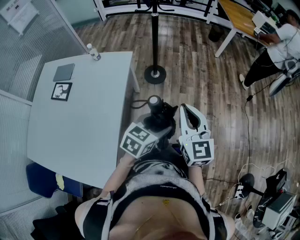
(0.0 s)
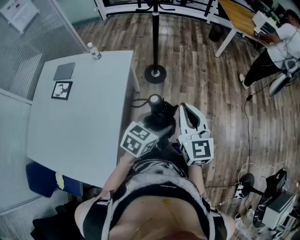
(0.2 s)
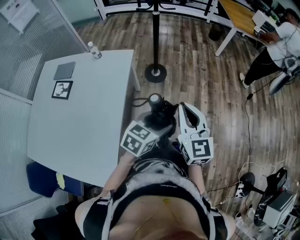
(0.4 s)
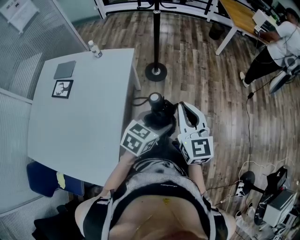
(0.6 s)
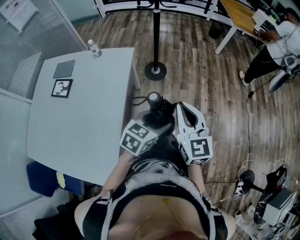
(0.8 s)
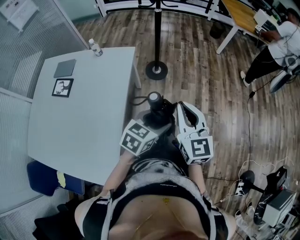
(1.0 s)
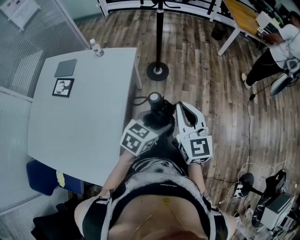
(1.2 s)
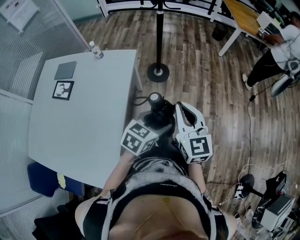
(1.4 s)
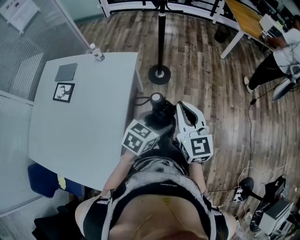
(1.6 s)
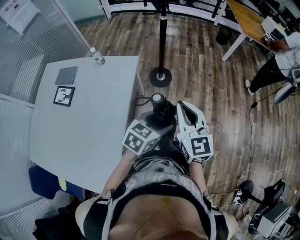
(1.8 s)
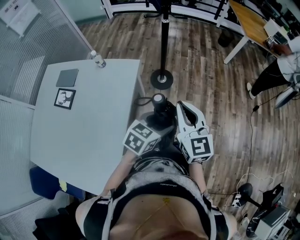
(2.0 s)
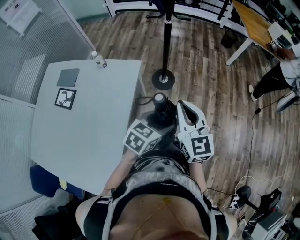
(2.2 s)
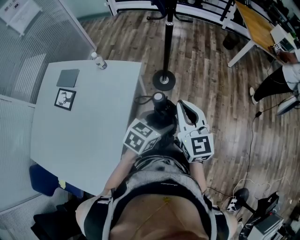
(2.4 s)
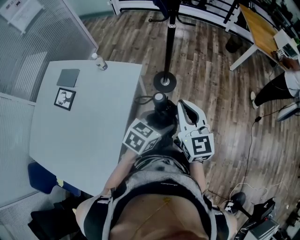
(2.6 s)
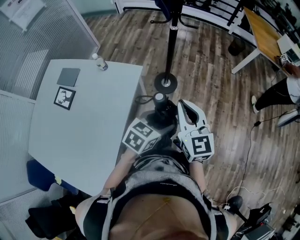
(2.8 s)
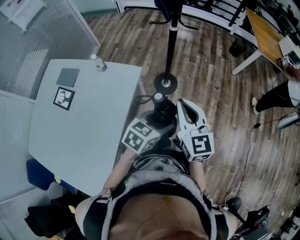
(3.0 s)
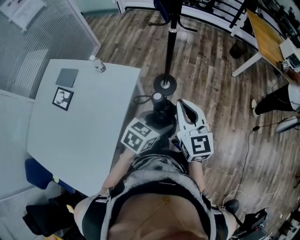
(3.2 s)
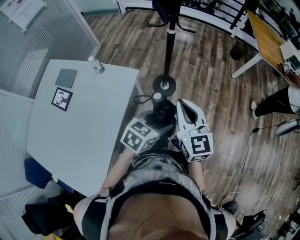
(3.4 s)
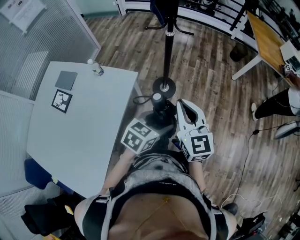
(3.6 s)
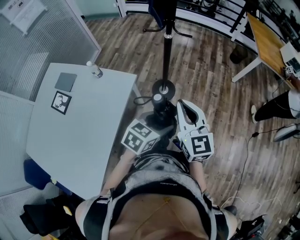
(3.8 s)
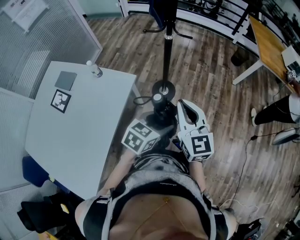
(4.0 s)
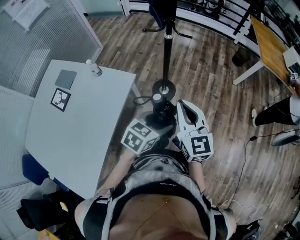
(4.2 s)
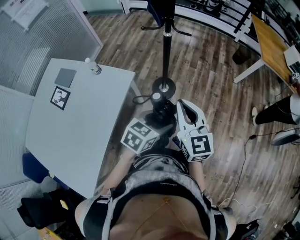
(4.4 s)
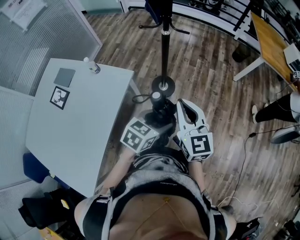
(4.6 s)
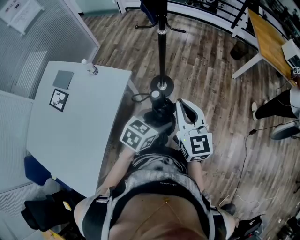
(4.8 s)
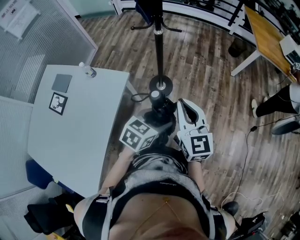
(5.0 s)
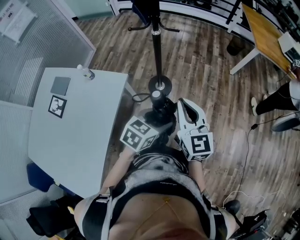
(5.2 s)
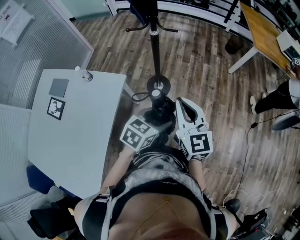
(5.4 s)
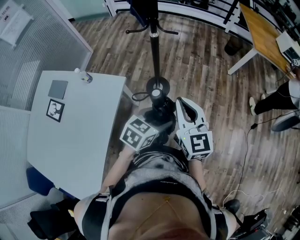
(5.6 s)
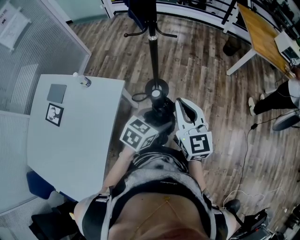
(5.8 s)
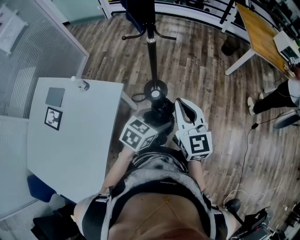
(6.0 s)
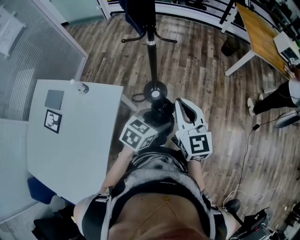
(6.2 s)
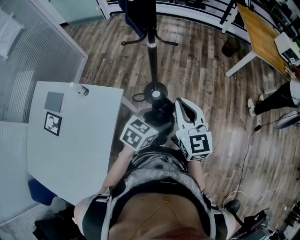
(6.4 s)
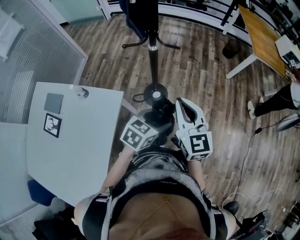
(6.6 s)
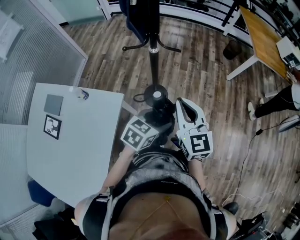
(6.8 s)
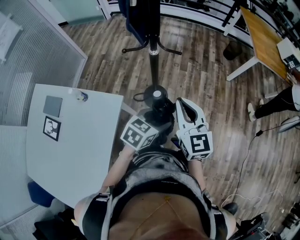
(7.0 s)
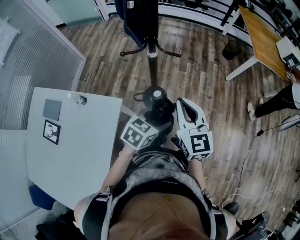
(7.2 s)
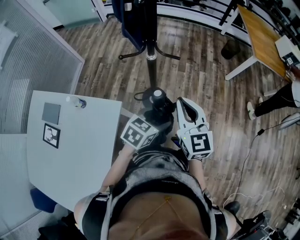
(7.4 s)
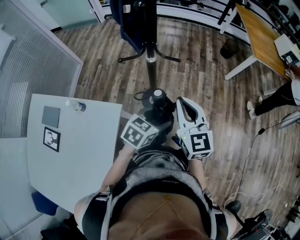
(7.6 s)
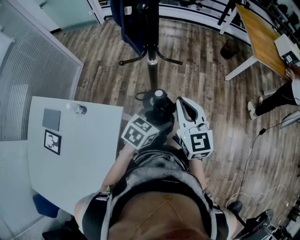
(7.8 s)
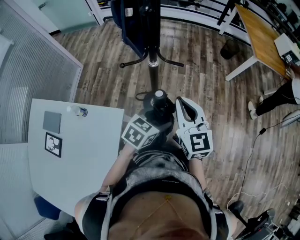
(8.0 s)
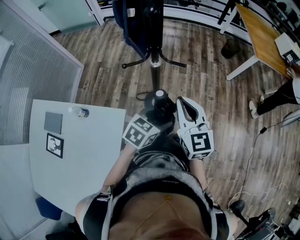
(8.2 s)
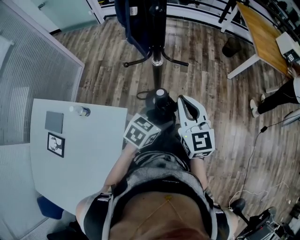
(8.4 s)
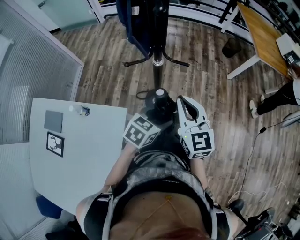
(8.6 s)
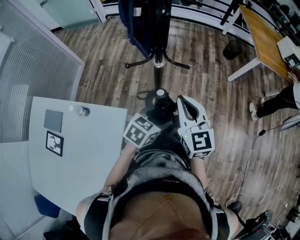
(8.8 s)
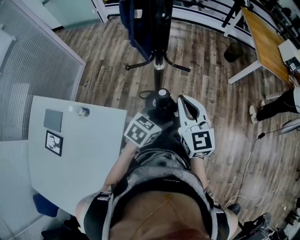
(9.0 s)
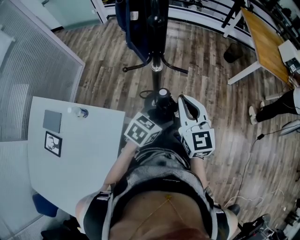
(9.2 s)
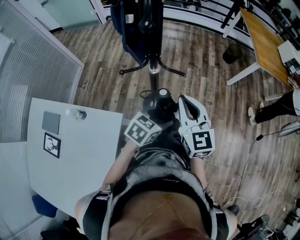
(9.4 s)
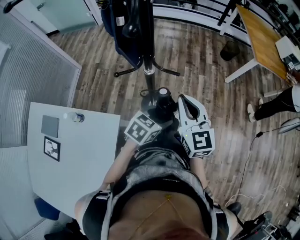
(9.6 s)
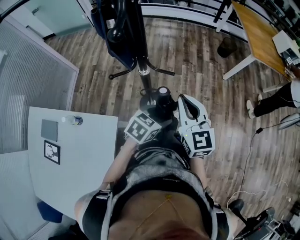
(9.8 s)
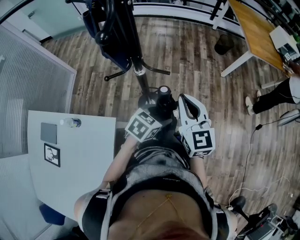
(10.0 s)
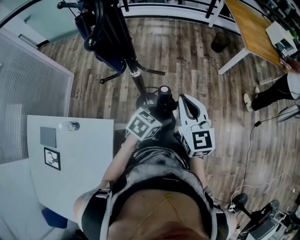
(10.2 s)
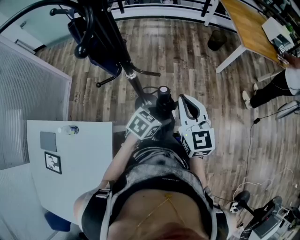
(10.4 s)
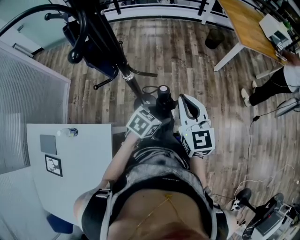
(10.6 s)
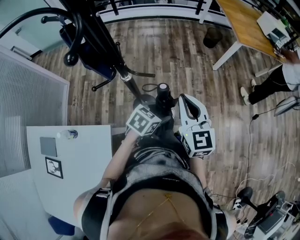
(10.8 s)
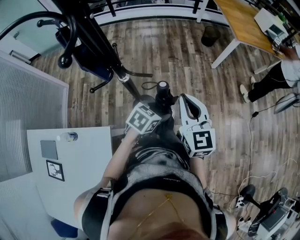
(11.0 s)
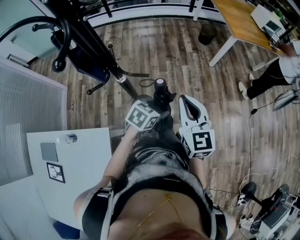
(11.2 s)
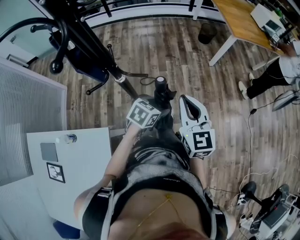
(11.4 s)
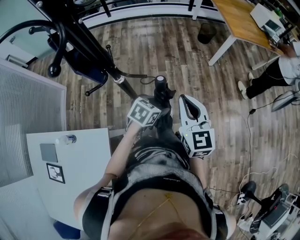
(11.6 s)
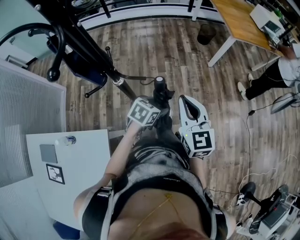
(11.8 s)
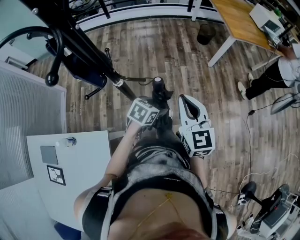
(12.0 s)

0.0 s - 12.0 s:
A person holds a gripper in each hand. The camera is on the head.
0.0 s - 1.6 s: The left gripper changes place by approximately 5 cm. Meanwhile the right gripper goes roughly 5 cm to the left.
1.6 s - 3.0 s: The two grippers go approximately 20 cm forward.
3.0 s - 4.4 s: The two grippers go approximately 10 cm forward and to the right.
4.4 s - 6.0 s: Both grippers move forward, about 5 cm.
6.0 s - 7.6 s: The grippers both shift forward and to the left by roughly 15 cm.
7.6 s - 9.0 s: The right gripper shifts by roughly 5 cm. The left gripper shifts by some 5 cm.
9.0 s - 10.4 s: The grippers both shift to the right and forward by approximately 10 cm.
10.4 s - 12.0 s: The left gripper shifts roughly 5 cm forward. The right gripper moves roughly 5 cm.

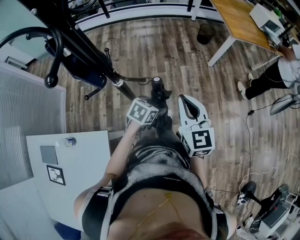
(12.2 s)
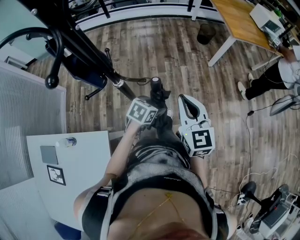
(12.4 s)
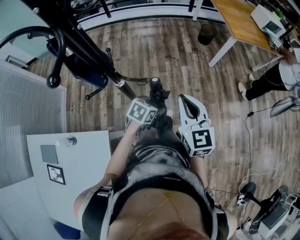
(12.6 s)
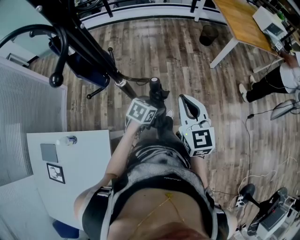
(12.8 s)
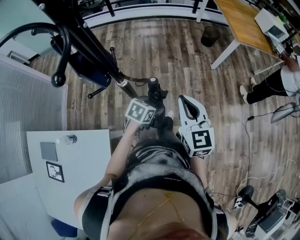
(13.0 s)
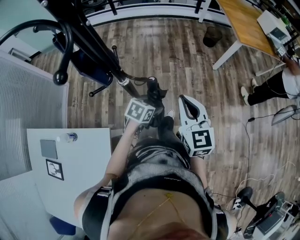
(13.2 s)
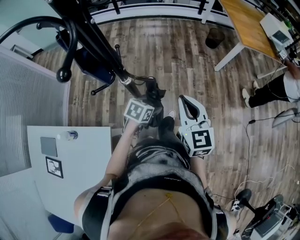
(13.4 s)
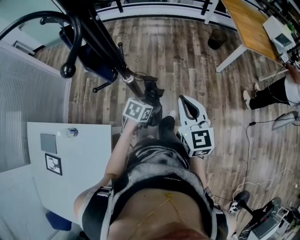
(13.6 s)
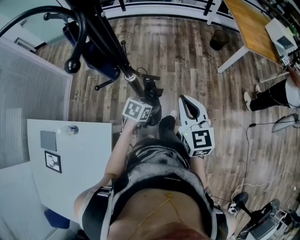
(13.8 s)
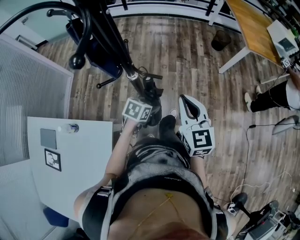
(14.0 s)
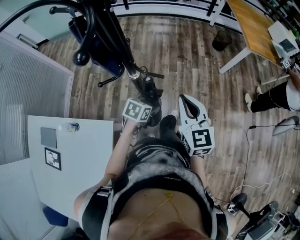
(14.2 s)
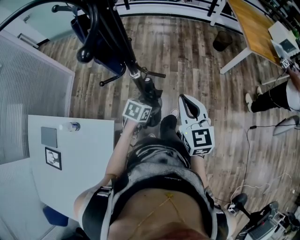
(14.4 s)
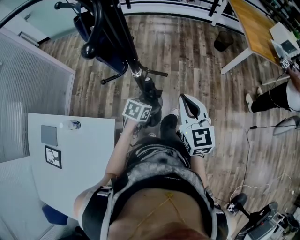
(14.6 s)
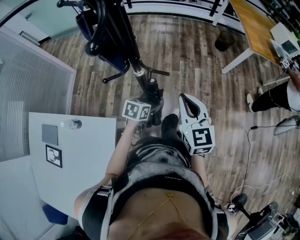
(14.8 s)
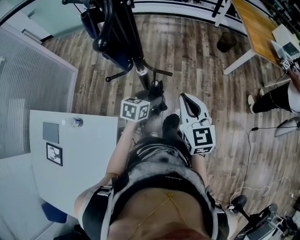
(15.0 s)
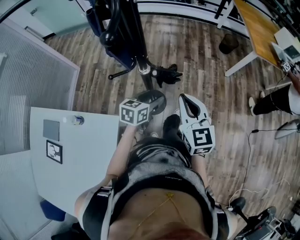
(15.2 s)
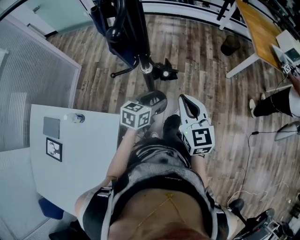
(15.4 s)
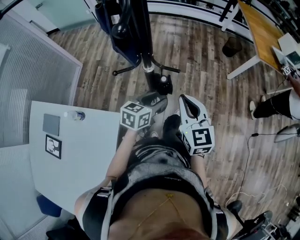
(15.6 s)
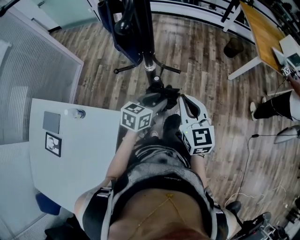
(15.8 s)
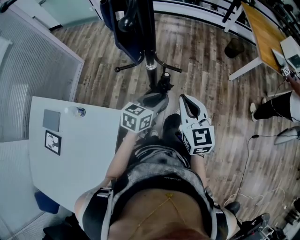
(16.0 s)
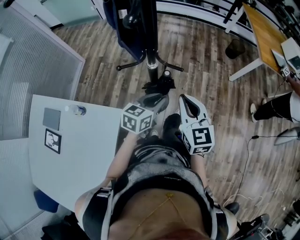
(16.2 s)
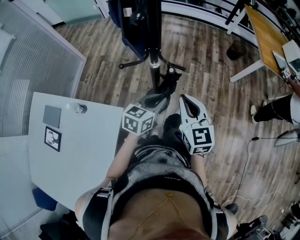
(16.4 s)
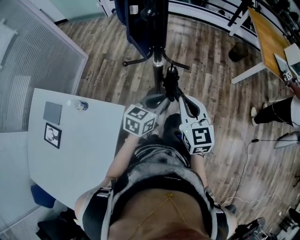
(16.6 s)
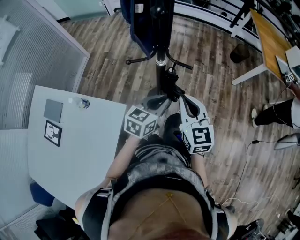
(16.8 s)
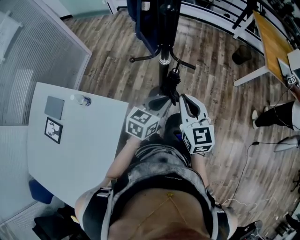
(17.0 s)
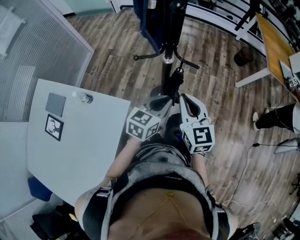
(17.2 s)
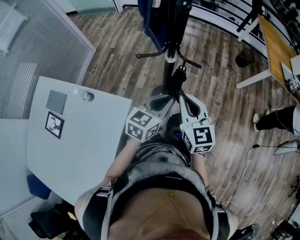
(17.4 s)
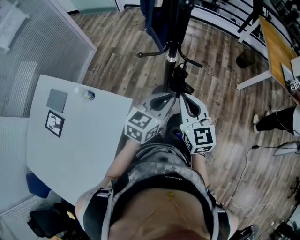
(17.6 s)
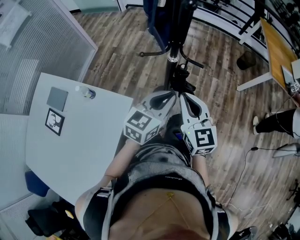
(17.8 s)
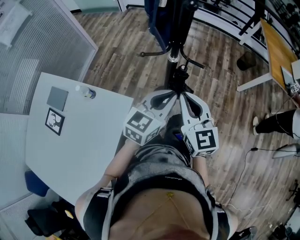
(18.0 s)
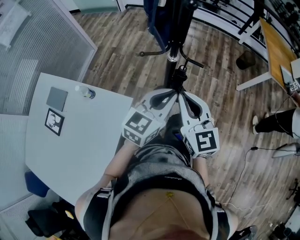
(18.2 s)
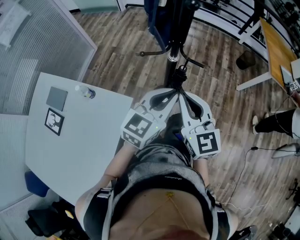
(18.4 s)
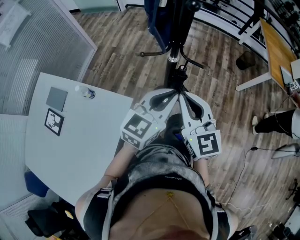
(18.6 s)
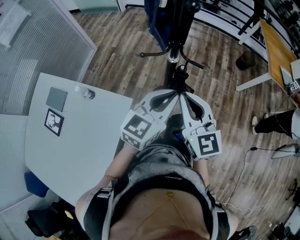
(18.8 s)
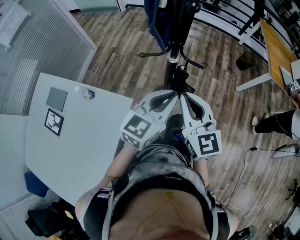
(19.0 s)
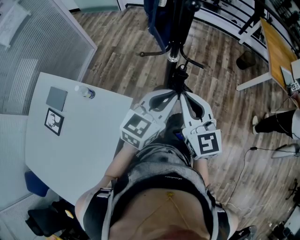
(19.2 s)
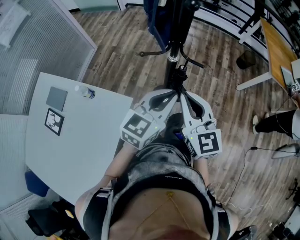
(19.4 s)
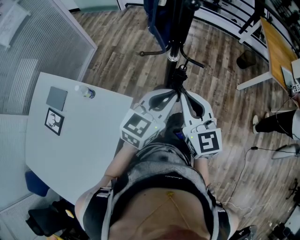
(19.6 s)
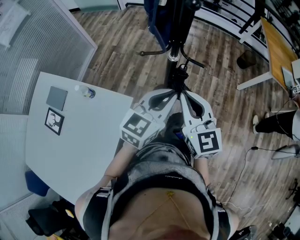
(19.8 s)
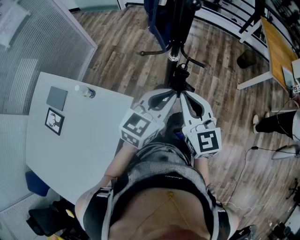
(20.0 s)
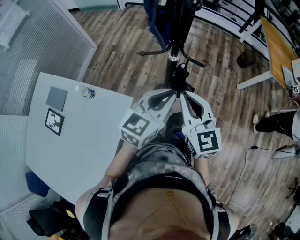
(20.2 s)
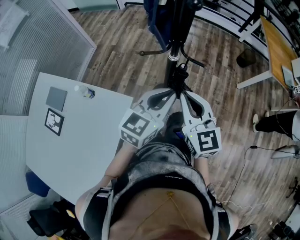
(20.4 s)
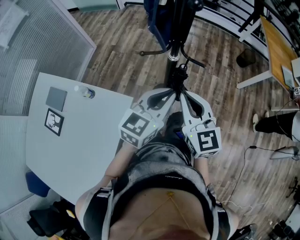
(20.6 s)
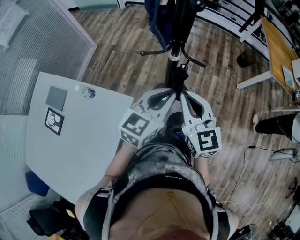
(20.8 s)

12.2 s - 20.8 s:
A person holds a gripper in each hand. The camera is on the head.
12.2 s - 13.6 s: The left gripper moves to the left, some 5 cm.
13.6 s - 15.0 s: The left gripper goes about 5 cm to the left.
15.0 s - 16.6 s: The left gripper travels upward and backward by roughly 10 cm, and closes; the right gripper ends up about 5 cm from where it was.
16.6 s - 18.0 s: The right gripper moves to the left, about 5 cm. Meanwhile the left gripper goes about 10 cm upward.
18.0 s - 19.4 s: The grippers move only a little.
19.4 s - 20.8 s: Neither gripper changes place.

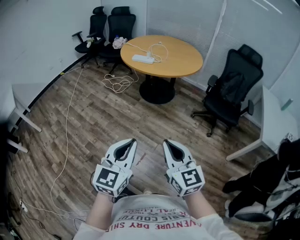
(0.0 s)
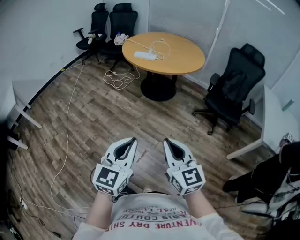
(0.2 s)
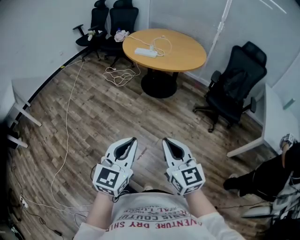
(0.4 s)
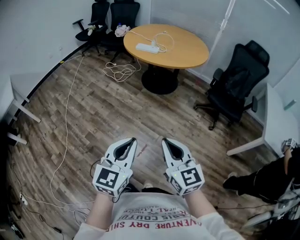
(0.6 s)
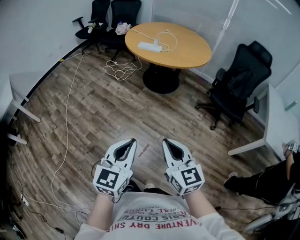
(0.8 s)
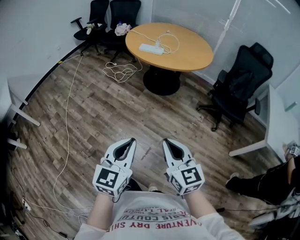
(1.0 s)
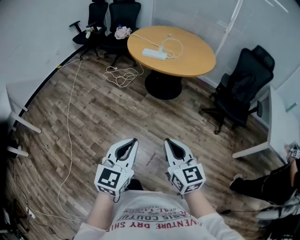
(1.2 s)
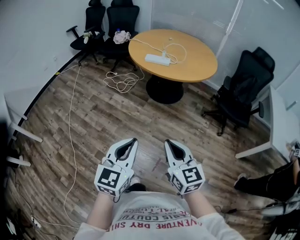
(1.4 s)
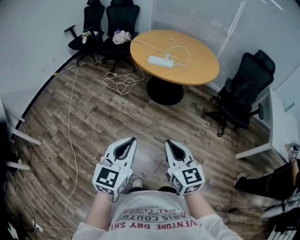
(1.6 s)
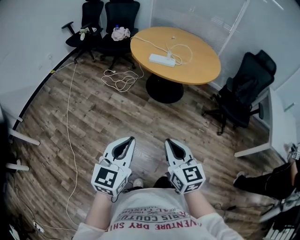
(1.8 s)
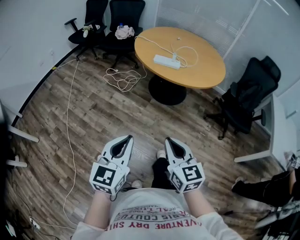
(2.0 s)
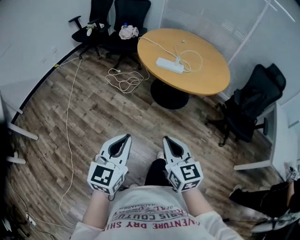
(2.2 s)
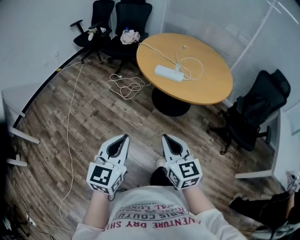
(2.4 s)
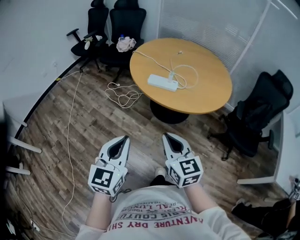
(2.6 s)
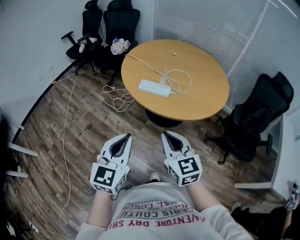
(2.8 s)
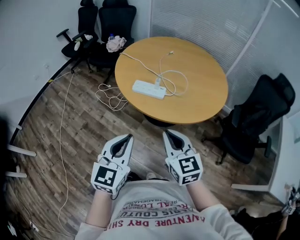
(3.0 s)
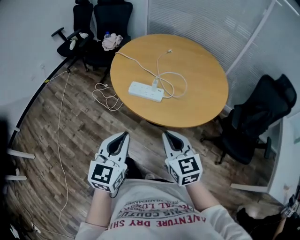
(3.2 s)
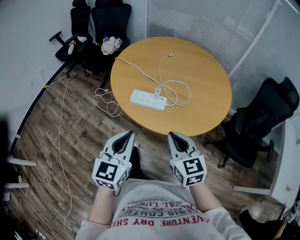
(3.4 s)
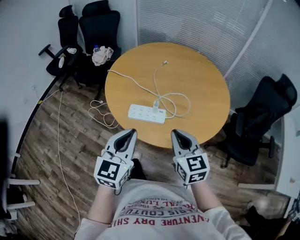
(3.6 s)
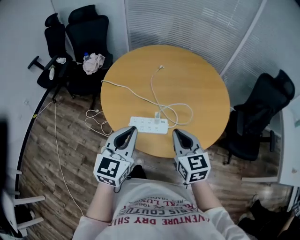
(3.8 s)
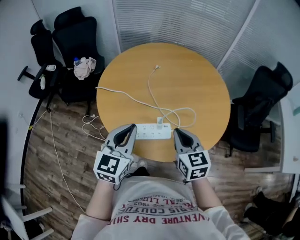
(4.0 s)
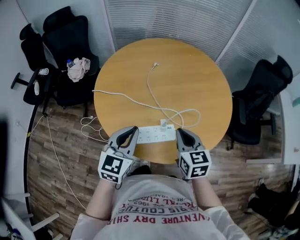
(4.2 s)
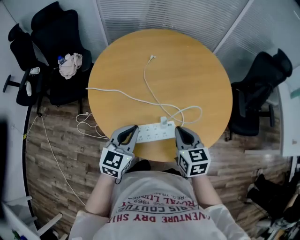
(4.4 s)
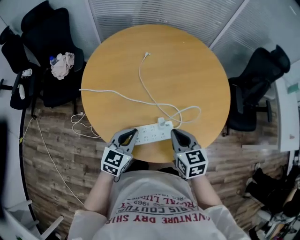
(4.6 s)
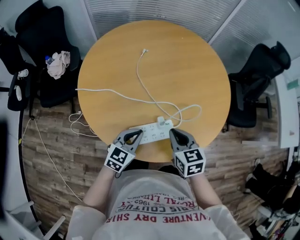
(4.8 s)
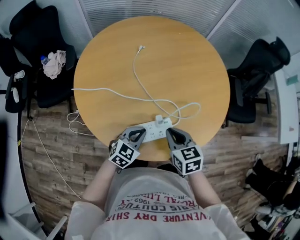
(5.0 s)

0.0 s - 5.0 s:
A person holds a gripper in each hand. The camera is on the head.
0.0 s - 1.6 s: The two grippers go about 30 cm to the left and forward.
1.6 s - 3.4 s: The pair of grippers is taken forward, roughly 50 cm.
3.4 s - 5.0 s: The right gripper shifts by approximately 25 cm, and changes its angle by some 40 degrees. The left gripper changes place by about 35 cm, and changes its angle by about 60 degrees.
